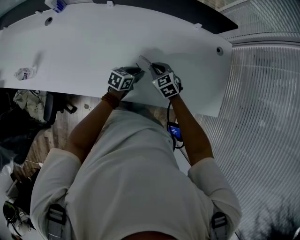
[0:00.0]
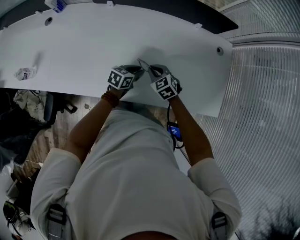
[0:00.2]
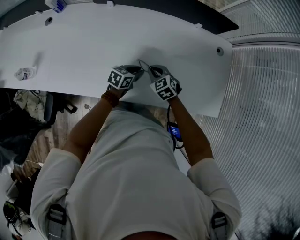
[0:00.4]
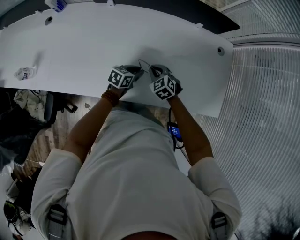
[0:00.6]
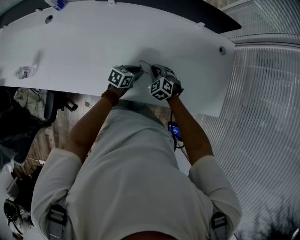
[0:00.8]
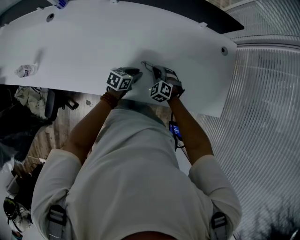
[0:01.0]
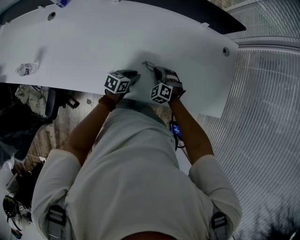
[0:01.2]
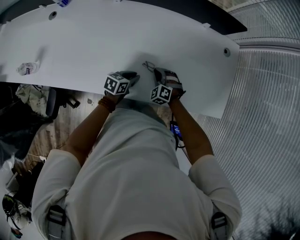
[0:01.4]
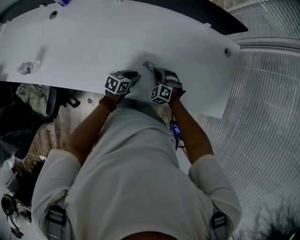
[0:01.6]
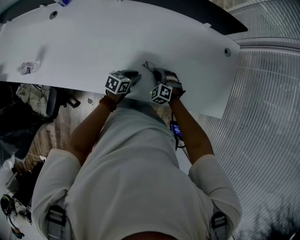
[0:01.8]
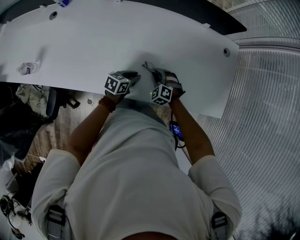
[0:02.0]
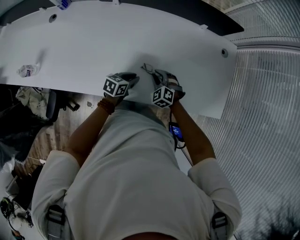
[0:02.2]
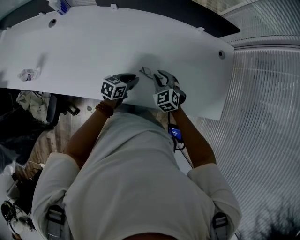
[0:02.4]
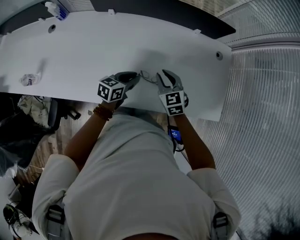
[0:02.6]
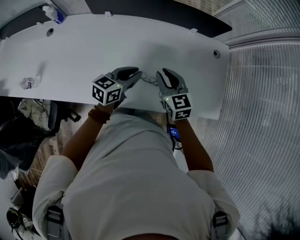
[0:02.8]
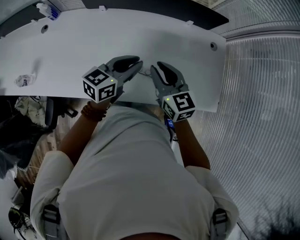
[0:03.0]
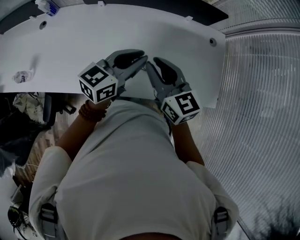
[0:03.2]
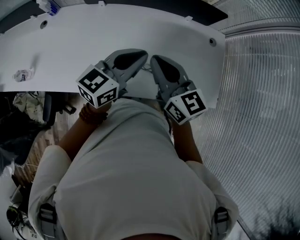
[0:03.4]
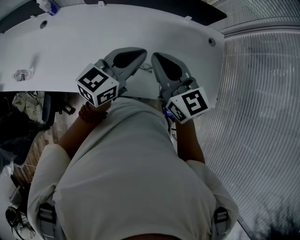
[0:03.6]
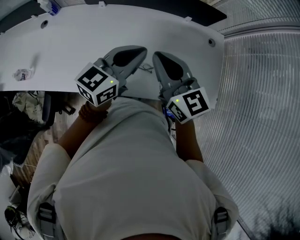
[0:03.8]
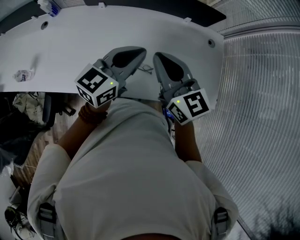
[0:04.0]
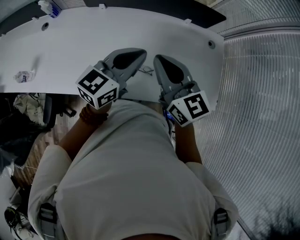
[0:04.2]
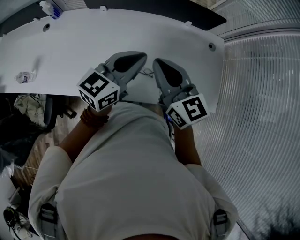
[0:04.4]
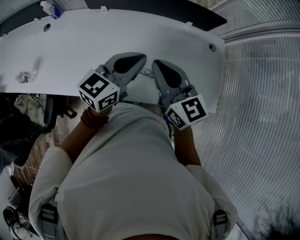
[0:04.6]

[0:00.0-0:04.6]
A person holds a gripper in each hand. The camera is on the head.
0:00.0 to 0:01.6: The right gripper shifts some 10 cm downward, and swivels approximately 40 degrees, while the left gripper ends up about 5 cm from where it was.
0:01.6 to 0:03.0: The grippers both shift upward by some 30 cm. The left gripper changes its angle by about 30 degrees. Meanwhile the right gripper rolls clockwise, seen from behind, by roughly 60 degrees.
0:03.0 to 0:04.6: The two grippers go some 10 cm upward. The right gripper closes up.

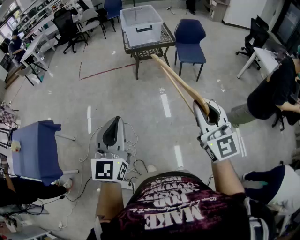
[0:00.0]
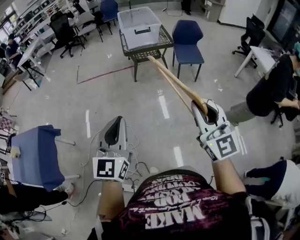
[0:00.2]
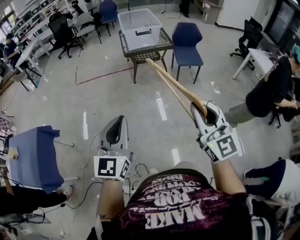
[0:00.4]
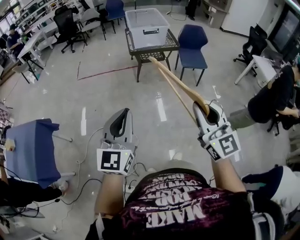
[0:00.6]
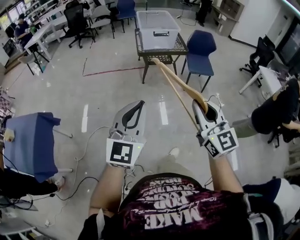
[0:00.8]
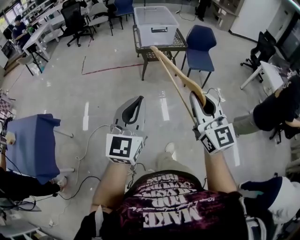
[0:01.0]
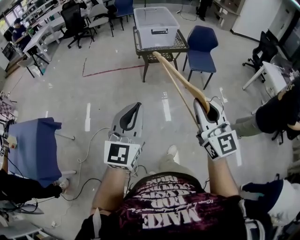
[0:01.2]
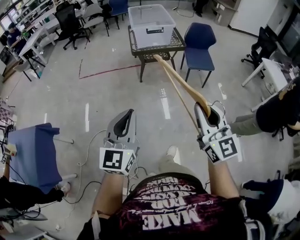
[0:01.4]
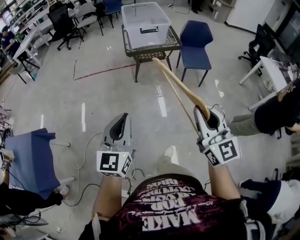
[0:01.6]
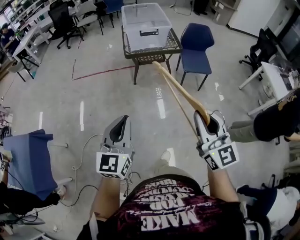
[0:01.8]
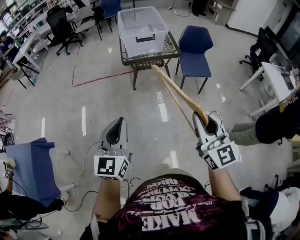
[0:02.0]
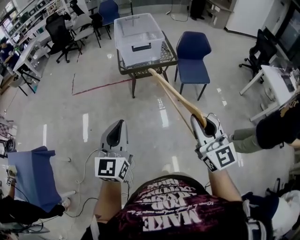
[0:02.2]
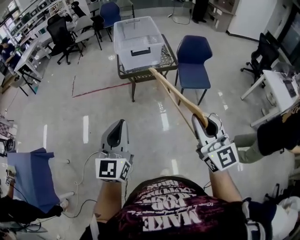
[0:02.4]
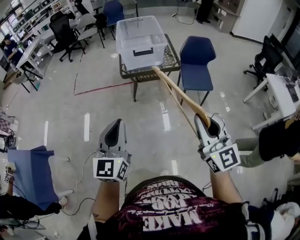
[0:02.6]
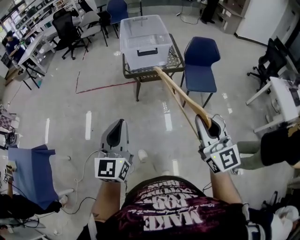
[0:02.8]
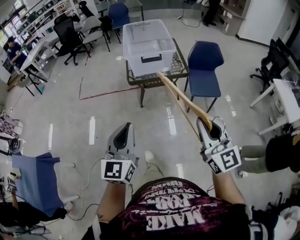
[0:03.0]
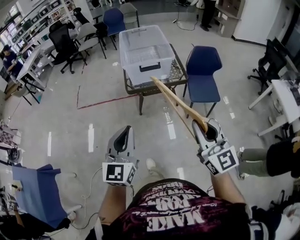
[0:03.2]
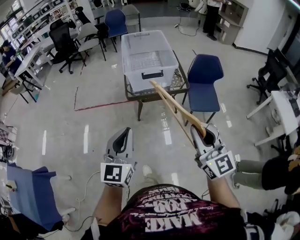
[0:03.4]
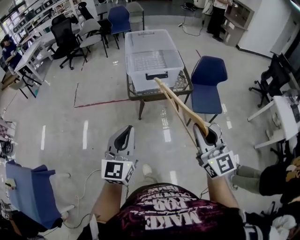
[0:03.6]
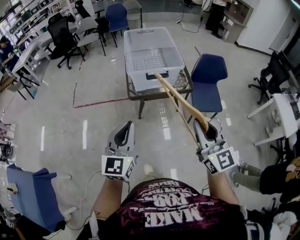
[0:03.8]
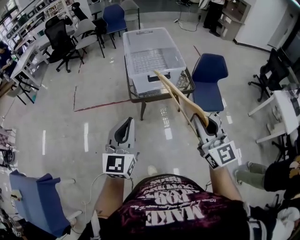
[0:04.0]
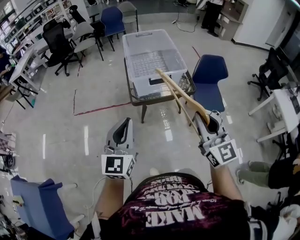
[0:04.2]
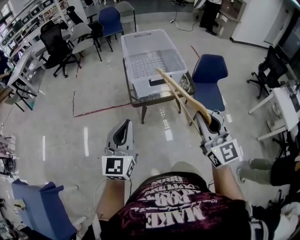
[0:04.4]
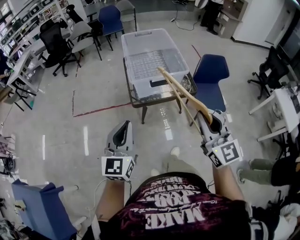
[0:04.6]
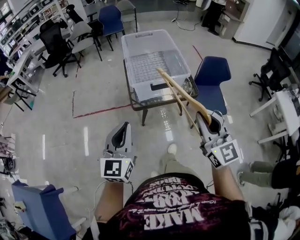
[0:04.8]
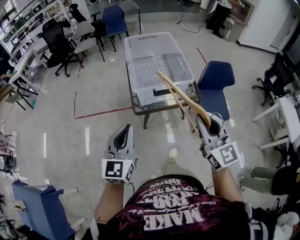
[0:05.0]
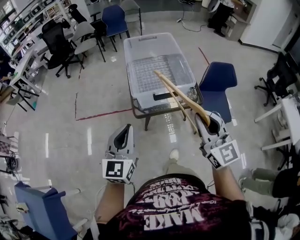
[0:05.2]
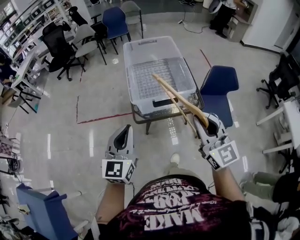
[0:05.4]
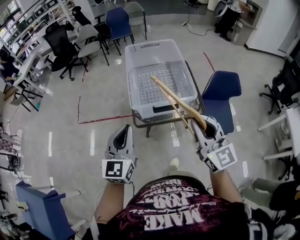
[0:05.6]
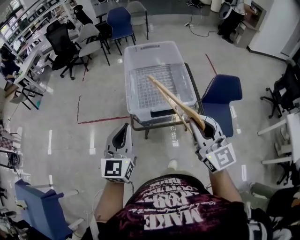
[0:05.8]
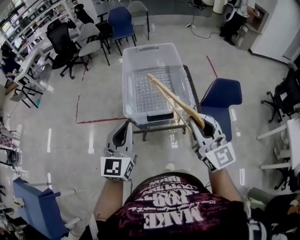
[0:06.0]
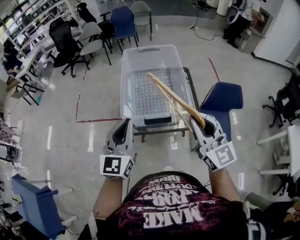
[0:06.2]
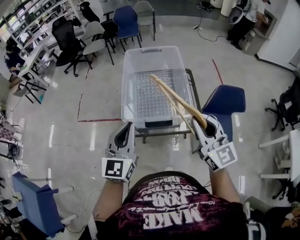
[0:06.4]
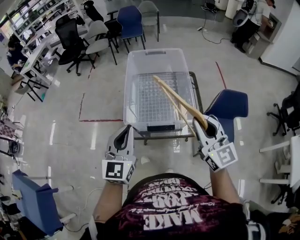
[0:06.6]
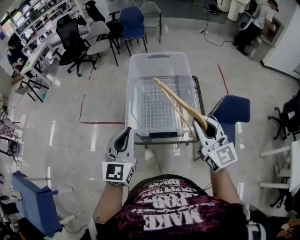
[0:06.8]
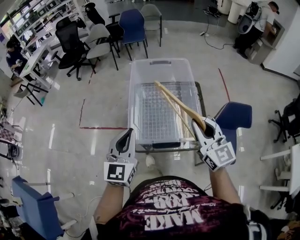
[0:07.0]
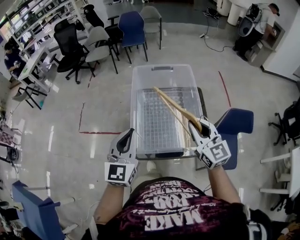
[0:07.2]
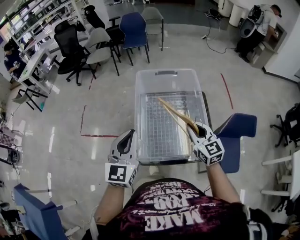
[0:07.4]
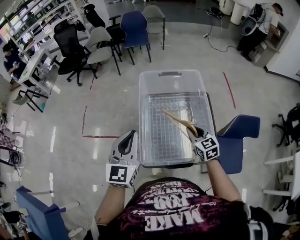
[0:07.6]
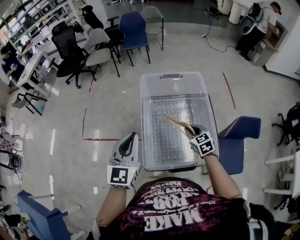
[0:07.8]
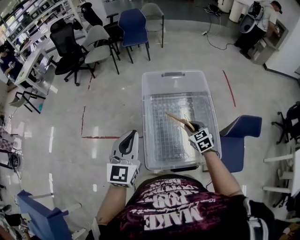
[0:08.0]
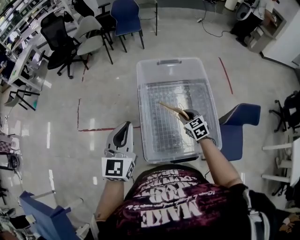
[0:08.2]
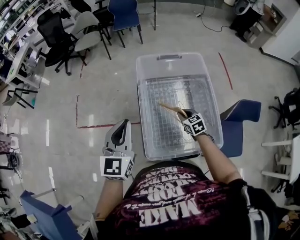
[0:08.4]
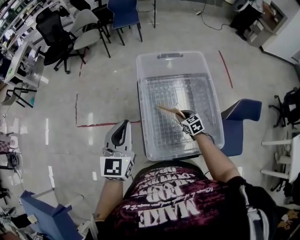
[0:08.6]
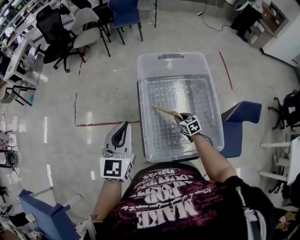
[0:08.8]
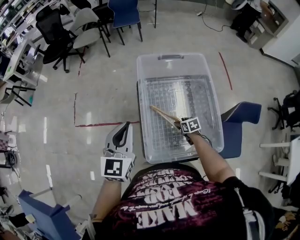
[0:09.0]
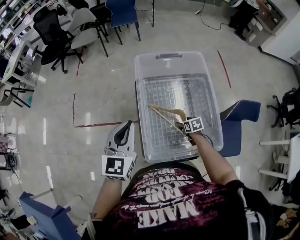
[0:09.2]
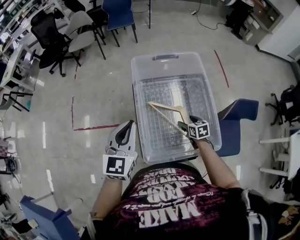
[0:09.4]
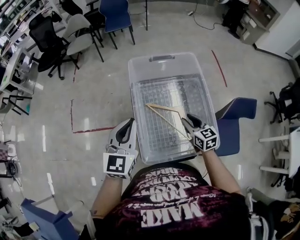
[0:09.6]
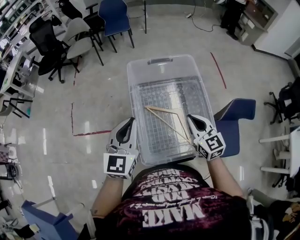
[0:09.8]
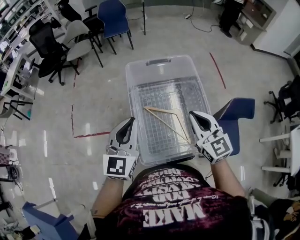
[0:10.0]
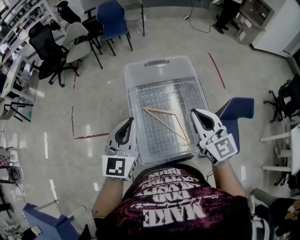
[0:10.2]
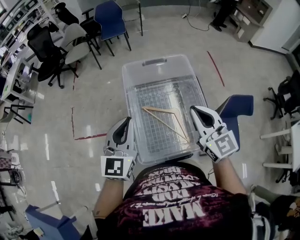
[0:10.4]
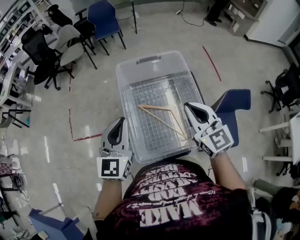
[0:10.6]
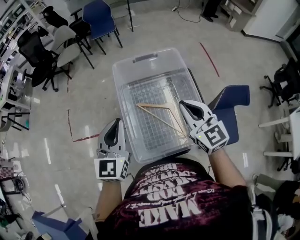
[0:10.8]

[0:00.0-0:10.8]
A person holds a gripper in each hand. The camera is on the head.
0:00.0 to 0:01.6: Both grippers move forward, about 15 cm.
0:01.6 to 0:03.0: The two grippers go roughly 20 cm forward.
0:03.0 to 0:04.6: The two grippers go about 25 cm forward.
0:04.6 to 0:06.2: The left gripper moves forward and to the right, some 25 cm. The right gripper moves forward, approximately 25 cm.
0:06.2 to 0:07.8: The left gripper moves forward, roughly 25 cm, while the right gripper travels forward and downward by approximately 40 cm, and tips its fingers downward by roughly 40 degrees.
0:07.8 to 0:09.2: The left gripper ends up about 5 cm from where it was, while the right gripper heads downward, covering approximately 20 cm, swivels roughly 30 degrees, and opens.
0:09.2 to 0:10.8: The right gripper heads upward, covering about 40 cm, points its fingers some 50 degrees further upward, and closes; the left gripper changes place by about 5 cm.

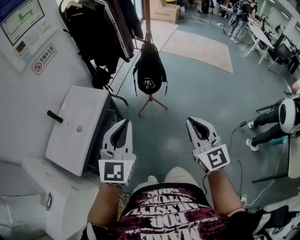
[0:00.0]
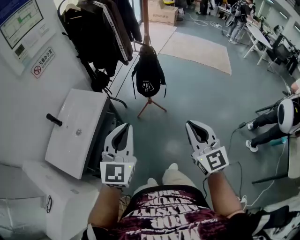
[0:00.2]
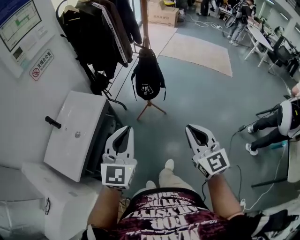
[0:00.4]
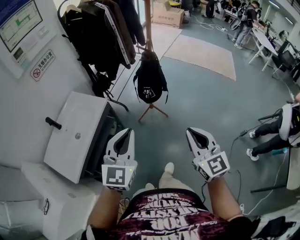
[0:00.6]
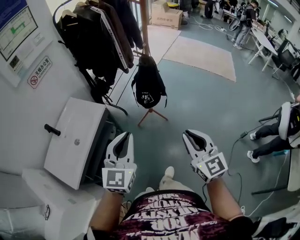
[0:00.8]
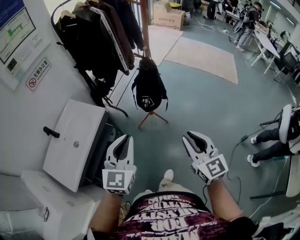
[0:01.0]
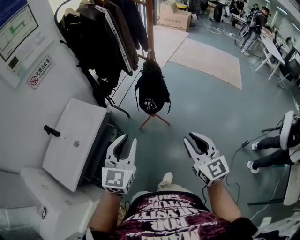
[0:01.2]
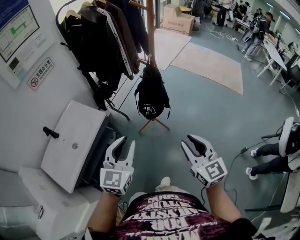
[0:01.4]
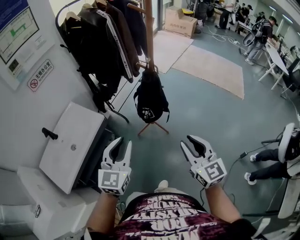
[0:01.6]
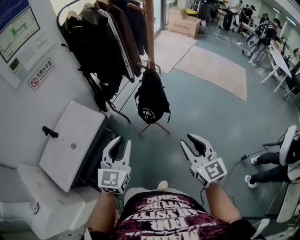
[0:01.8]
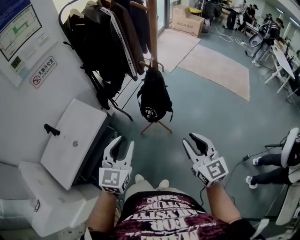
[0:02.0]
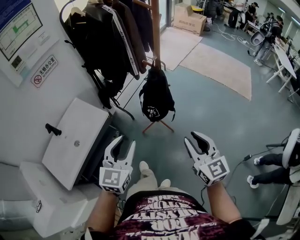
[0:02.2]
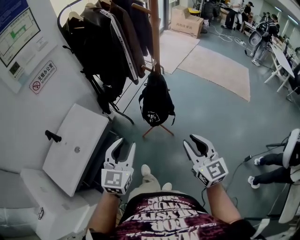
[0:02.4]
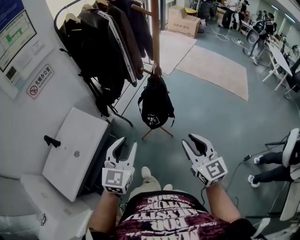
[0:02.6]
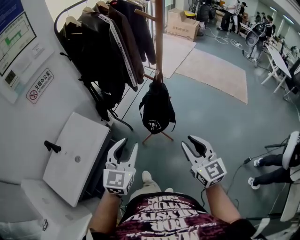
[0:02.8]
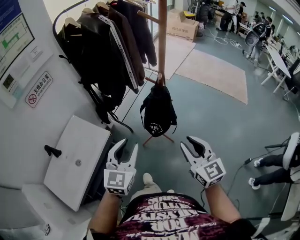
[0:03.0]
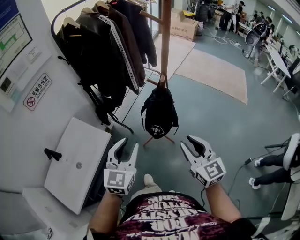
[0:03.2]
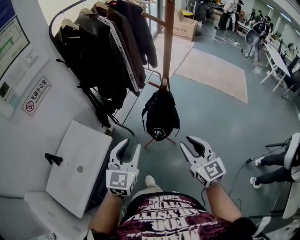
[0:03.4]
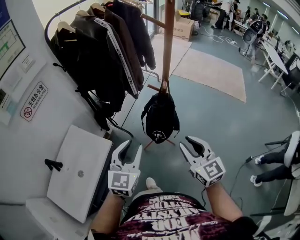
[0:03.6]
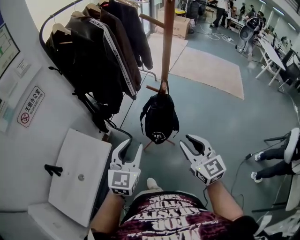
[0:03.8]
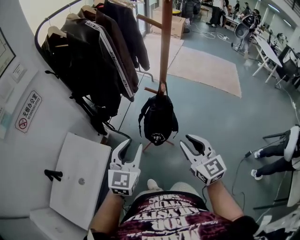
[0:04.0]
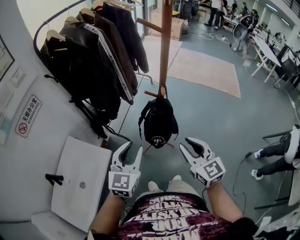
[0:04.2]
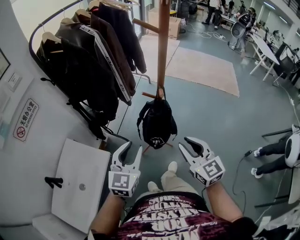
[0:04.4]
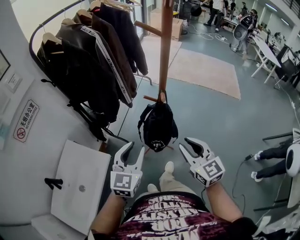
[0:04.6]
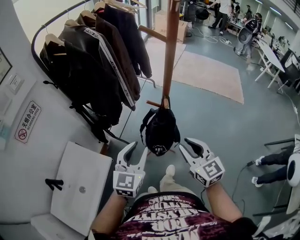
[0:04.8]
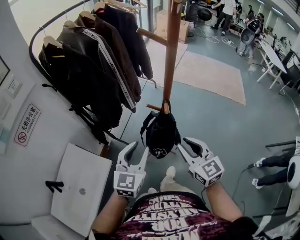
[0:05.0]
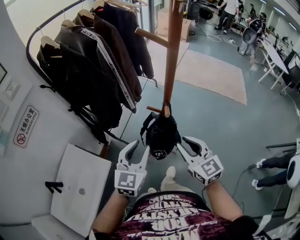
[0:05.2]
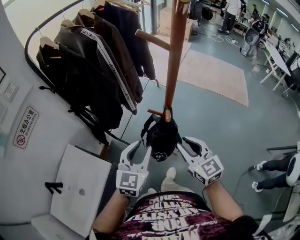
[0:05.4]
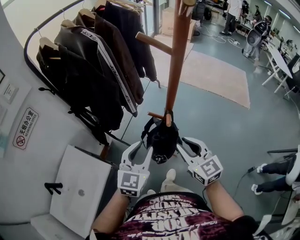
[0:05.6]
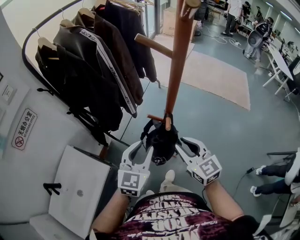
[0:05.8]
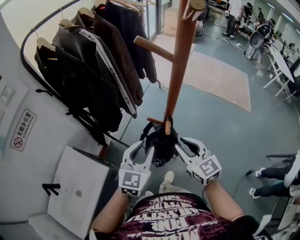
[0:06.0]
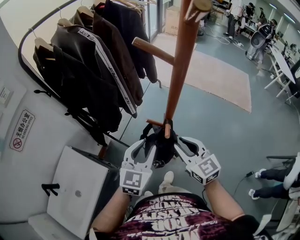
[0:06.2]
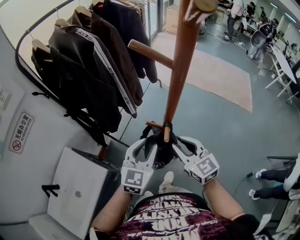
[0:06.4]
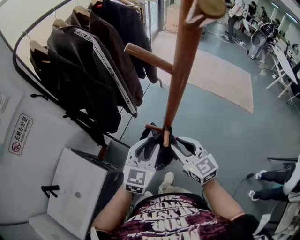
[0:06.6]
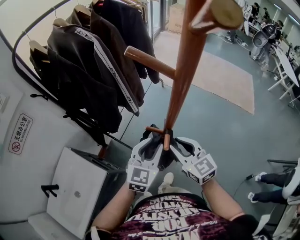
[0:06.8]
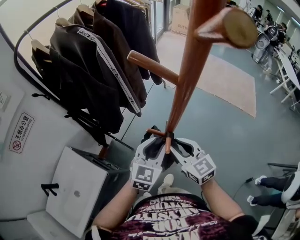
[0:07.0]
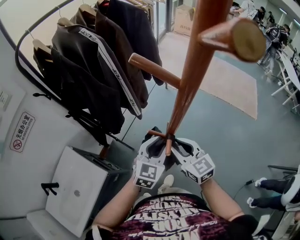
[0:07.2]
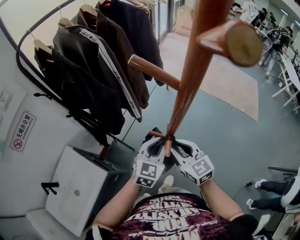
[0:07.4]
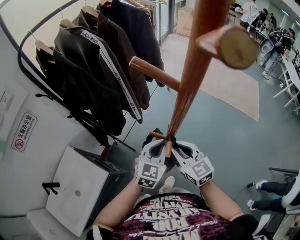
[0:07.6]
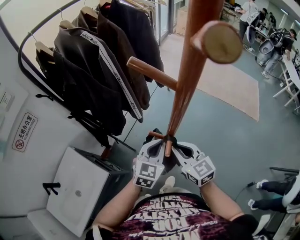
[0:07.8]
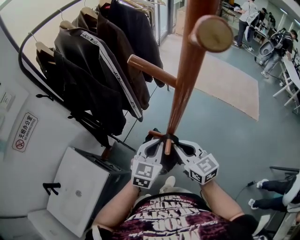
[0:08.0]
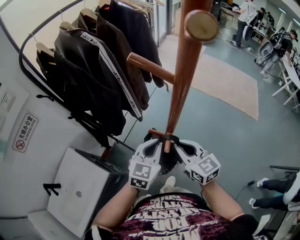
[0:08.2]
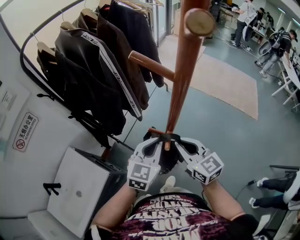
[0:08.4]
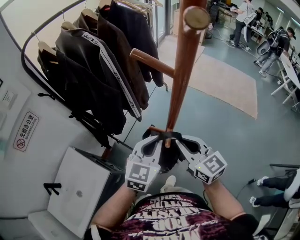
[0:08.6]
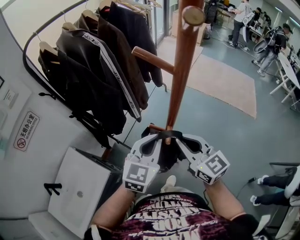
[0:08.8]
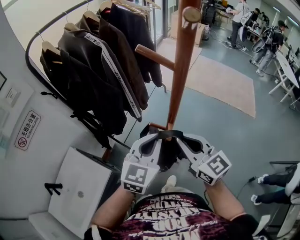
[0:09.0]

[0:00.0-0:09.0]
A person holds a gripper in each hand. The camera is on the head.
0:00.0 to 0:01.6: Both grippers move forward and to the right, roughly 20 cm. The right gripper opens up.
0:01.6 to 0:03.0: The grippers both shift forward by approximately 10 cm.
0:03.0 to 0:04.4: The two grippers go about 10 cm forward.
0:04.4 to 0:06.0: The right gripper moves forward, approximately 15 cm; the left gripper shifts some 15 cm forward and to the right.
0:06.0 to 0:07.6: The left gripper shifts approximately 10 cm forward and to the right, and closes its fingers. The right gripper shifts approximately 10 cm forward.
0:07.6 to 0:09.0: The two grippers go roughly 10 cm upward.
